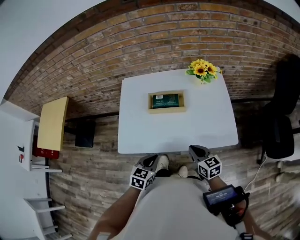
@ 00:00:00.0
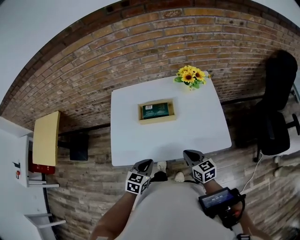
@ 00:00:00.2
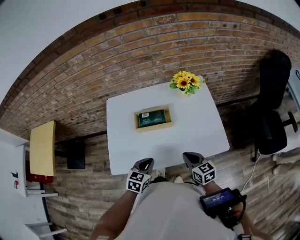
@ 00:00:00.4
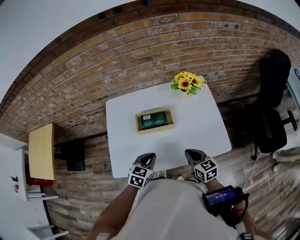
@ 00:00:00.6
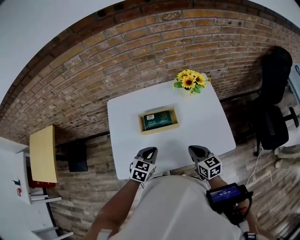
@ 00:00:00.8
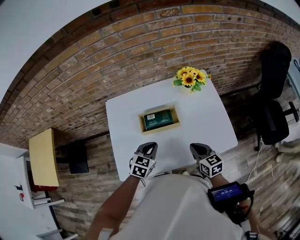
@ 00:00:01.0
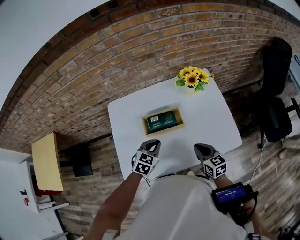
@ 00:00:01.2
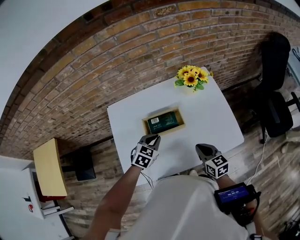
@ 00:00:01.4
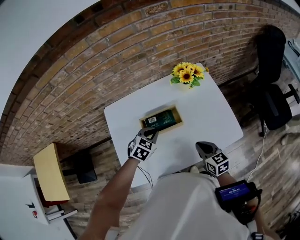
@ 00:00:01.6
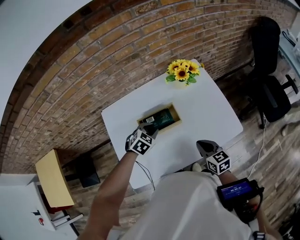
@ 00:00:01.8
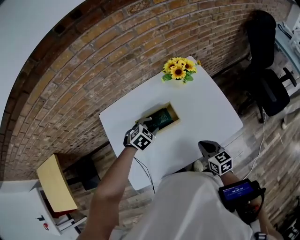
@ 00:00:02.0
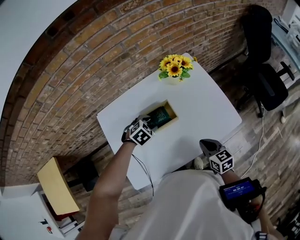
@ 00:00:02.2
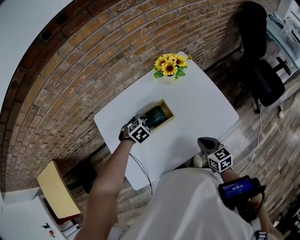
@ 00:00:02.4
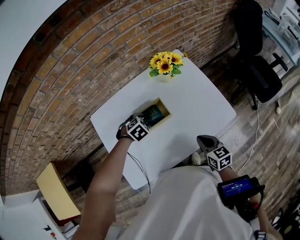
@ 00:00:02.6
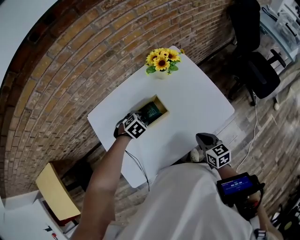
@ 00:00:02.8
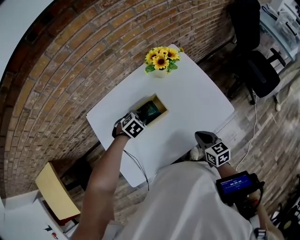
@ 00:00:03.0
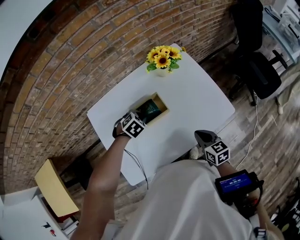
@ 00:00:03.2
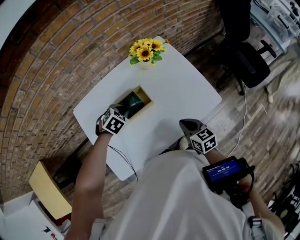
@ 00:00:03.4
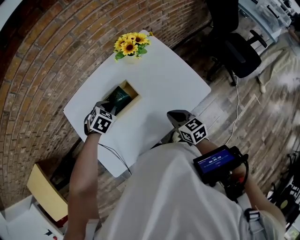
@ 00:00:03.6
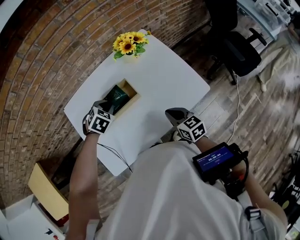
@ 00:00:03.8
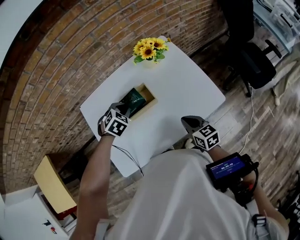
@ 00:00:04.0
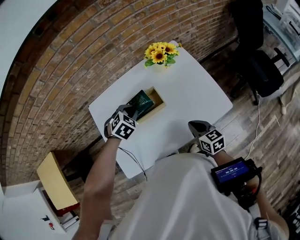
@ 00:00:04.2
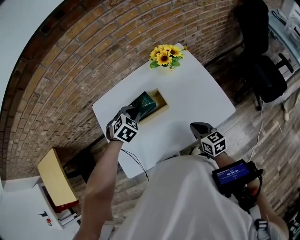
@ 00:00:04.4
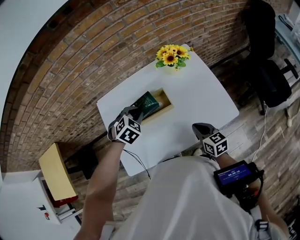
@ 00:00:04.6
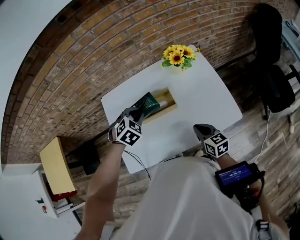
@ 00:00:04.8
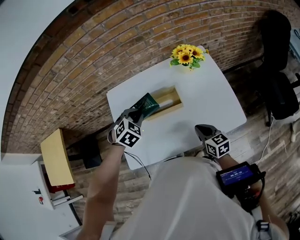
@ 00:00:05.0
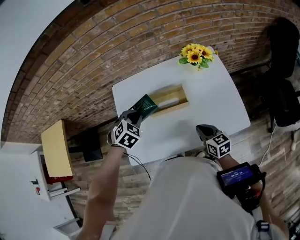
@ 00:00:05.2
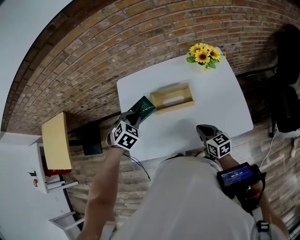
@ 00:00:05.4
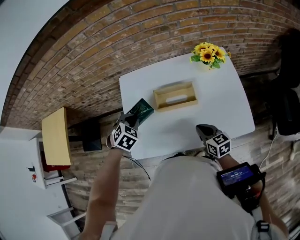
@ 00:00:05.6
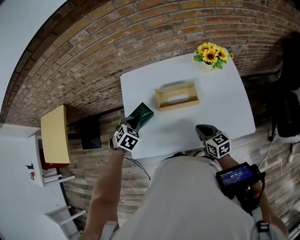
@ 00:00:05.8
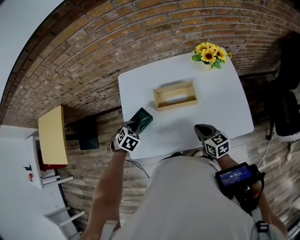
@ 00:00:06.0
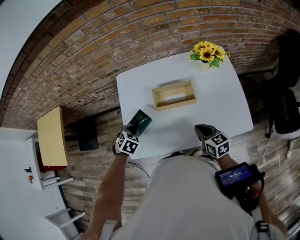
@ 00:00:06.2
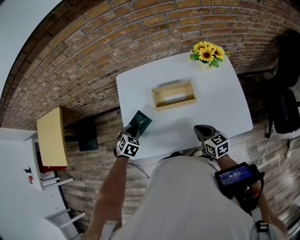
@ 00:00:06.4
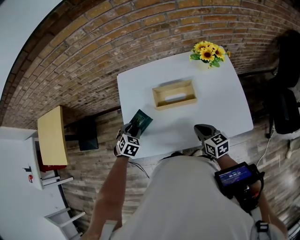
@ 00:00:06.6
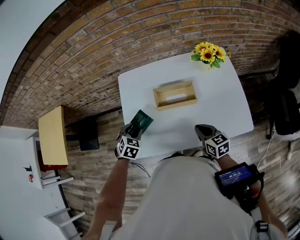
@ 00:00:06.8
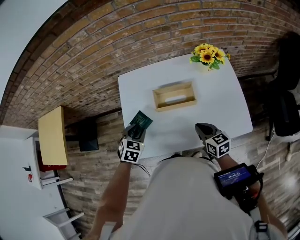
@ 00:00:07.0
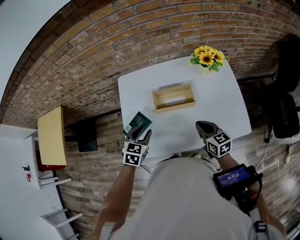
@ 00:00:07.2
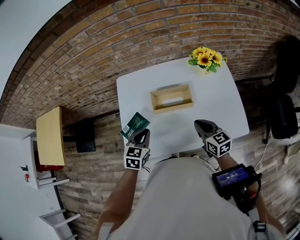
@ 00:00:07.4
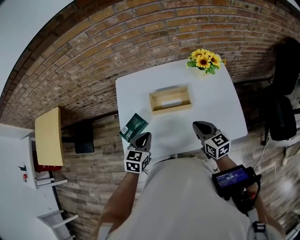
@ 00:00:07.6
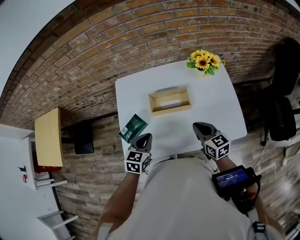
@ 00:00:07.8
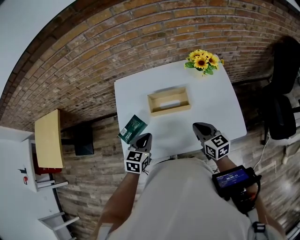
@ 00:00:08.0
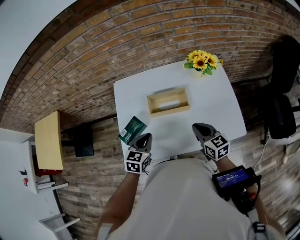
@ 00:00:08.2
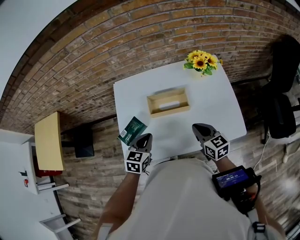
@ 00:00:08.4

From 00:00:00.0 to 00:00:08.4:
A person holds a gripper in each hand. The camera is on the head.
From 00:00:00.0 to 00:00:01.4: The right gripper shifts some 10 cm forward; the left gripper goes some 25 cm forward, and changes its angle by approximately 30 degrees.
From 00:00:01.4 to 00:00:02.8: The left gripper moves some 10 cm, changes its angle by about 40 degrees, and opens its fingers. The right gripper changes place by some 5 cm.
From 00:00:02.8 to 00:00:04.2: The left gripper travels upward by roughly 10 cm, and closes its fingers.
From 00:00:04.2 to 00:00:05.6: The left gripper ends up some 20 cm from where it was, and swivels some 30 degrees, while the right gripper ends up approximately 10 cm from where it was.
From 00:00:05.6 to 00:00:07.0: The left gripper opens its fingers.
From 00:00:07.0 to 00:00:08.4: The left gripper is displaced to the right by about 10 cm, swivels some 20 degrees, and closes up.

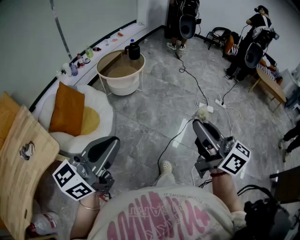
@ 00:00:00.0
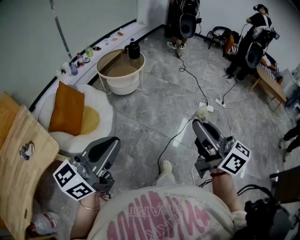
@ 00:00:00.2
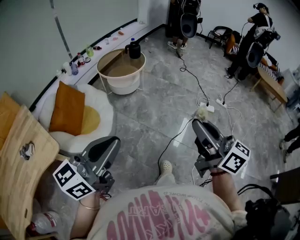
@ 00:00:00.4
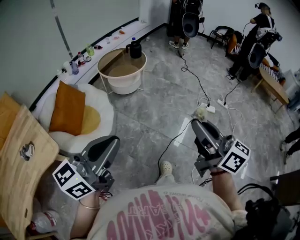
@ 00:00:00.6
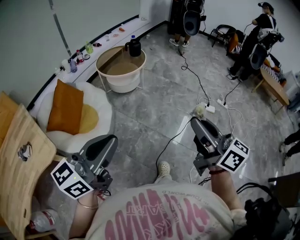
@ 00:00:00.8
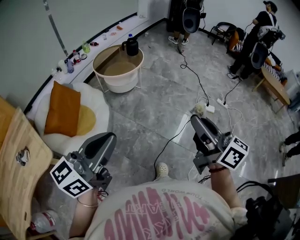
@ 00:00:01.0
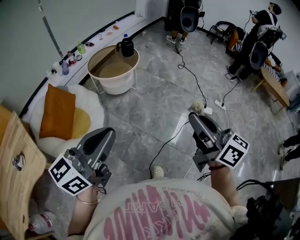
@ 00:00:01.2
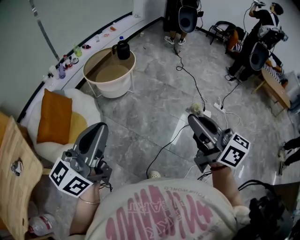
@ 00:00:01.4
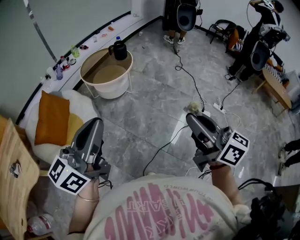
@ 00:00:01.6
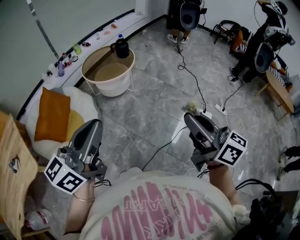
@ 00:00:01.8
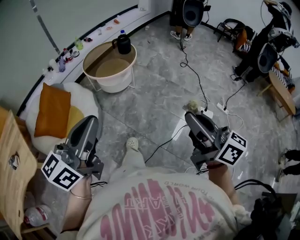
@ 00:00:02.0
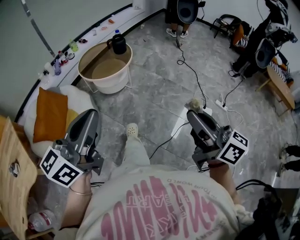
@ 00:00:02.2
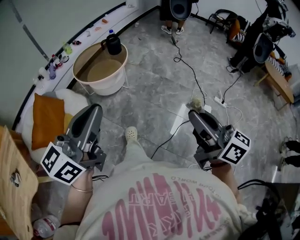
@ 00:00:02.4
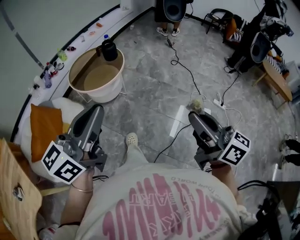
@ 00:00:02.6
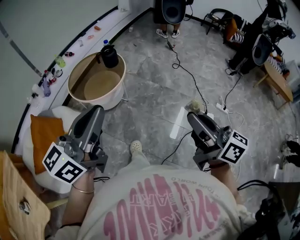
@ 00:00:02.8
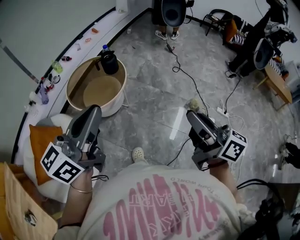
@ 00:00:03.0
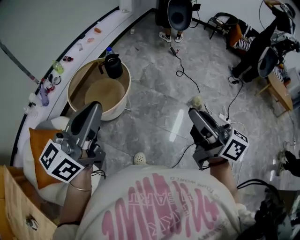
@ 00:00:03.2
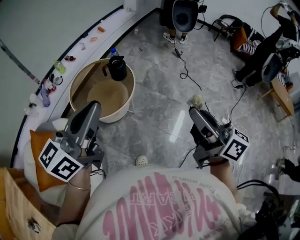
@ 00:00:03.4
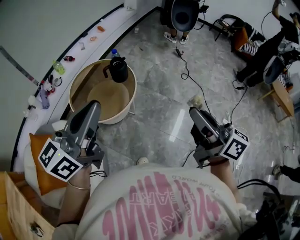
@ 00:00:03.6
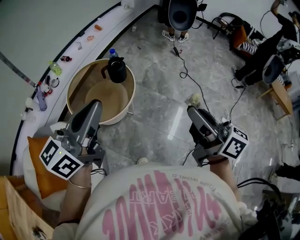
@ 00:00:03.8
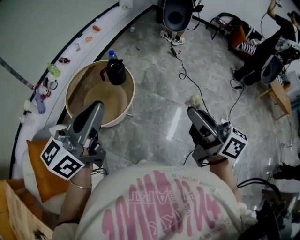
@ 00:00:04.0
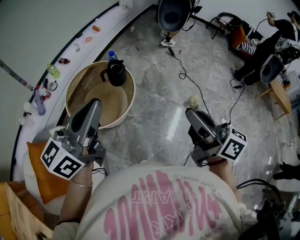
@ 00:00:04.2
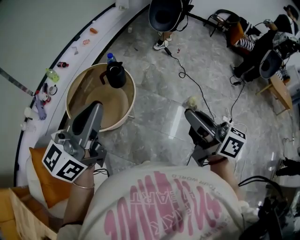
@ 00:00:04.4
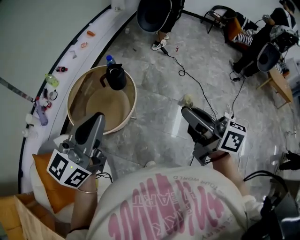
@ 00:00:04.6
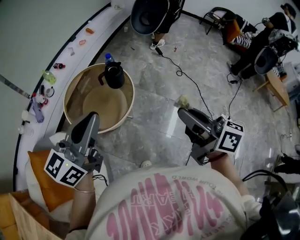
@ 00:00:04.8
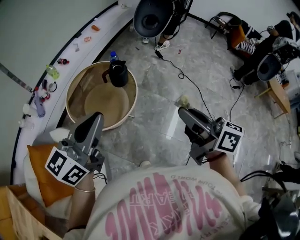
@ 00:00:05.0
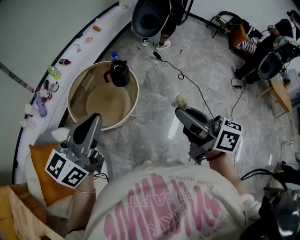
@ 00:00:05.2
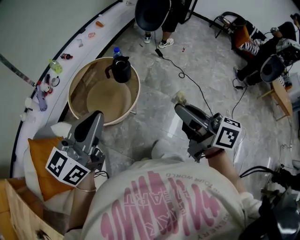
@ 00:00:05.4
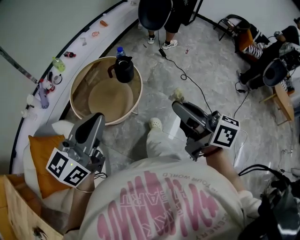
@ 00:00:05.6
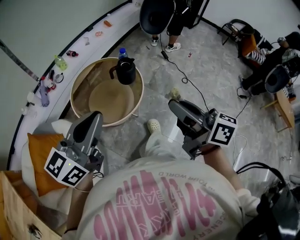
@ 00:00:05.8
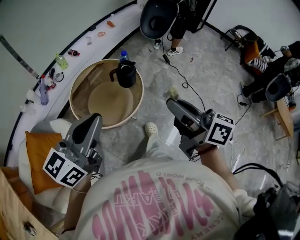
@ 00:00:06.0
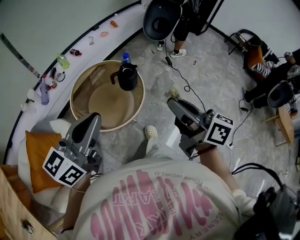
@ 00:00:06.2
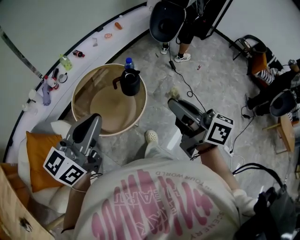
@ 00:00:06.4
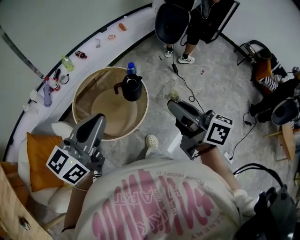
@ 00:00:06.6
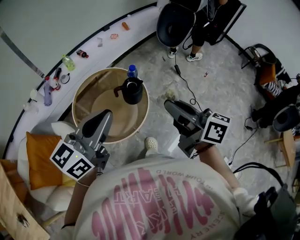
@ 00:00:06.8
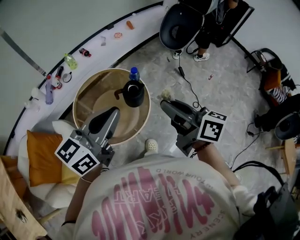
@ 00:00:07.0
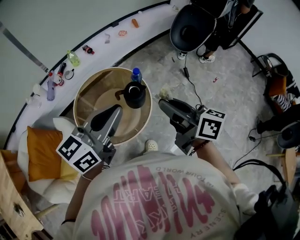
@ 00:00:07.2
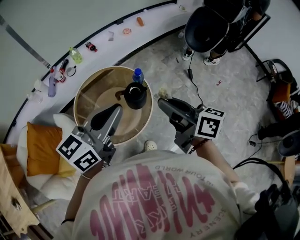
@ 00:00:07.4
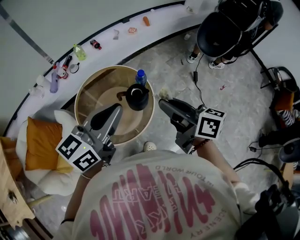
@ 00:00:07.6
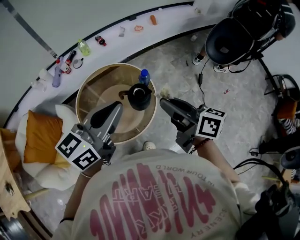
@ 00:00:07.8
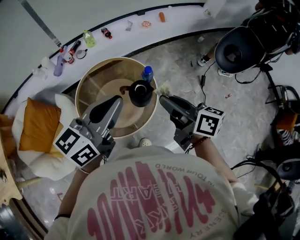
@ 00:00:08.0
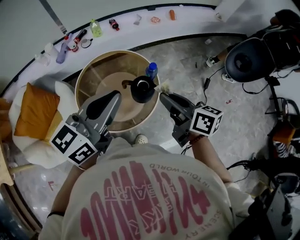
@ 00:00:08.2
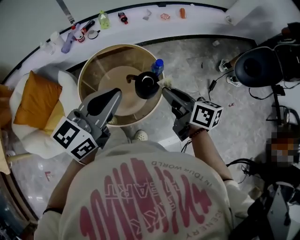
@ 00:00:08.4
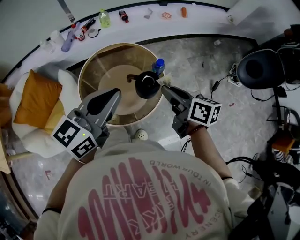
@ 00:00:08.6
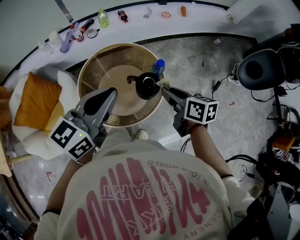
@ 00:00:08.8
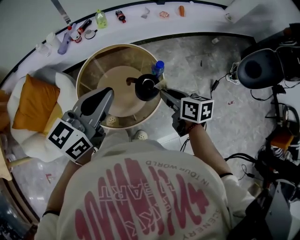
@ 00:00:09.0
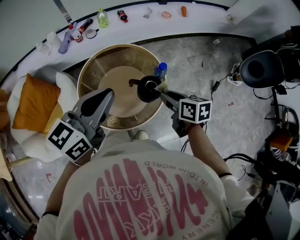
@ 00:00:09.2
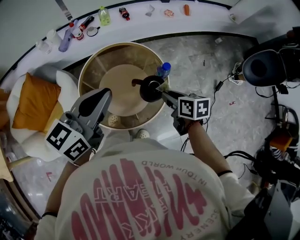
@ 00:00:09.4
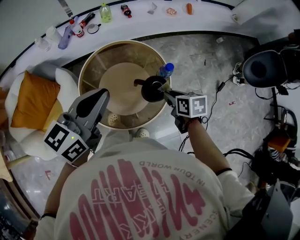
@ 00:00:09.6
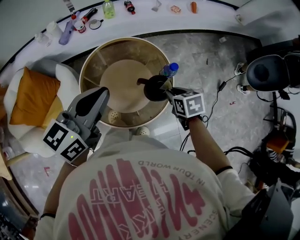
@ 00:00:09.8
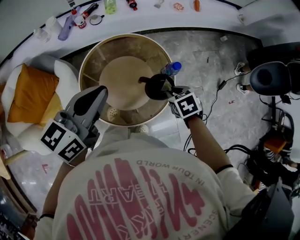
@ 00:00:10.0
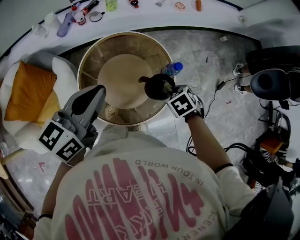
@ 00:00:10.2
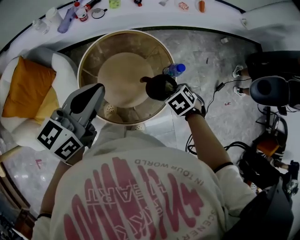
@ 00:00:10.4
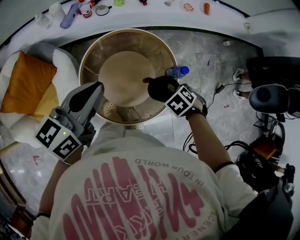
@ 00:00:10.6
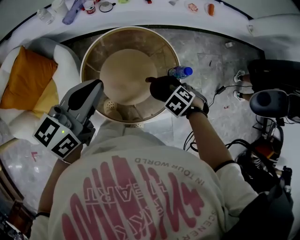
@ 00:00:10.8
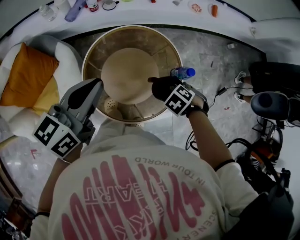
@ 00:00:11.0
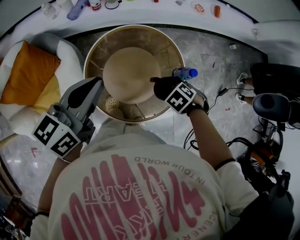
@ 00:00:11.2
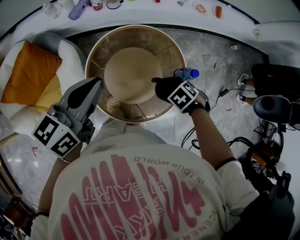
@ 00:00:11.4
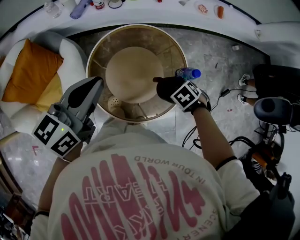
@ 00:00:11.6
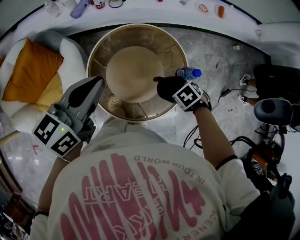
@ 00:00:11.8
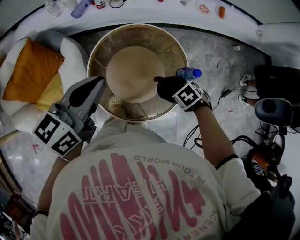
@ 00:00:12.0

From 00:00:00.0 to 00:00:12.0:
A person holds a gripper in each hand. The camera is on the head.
From 00:00:00.0 to 00:00:01.6: The two grippers go approximately 30 cm forward and to the right.
From 00:00:01.6 to 00:00:03.0: Both grippers travel together forward, approximately 30 cm.
From 00:00:03.0 to 00:00:04.4: The left gripper shifts some 20 cm forward. The right gripper goes approximately 25 cm forward and to the left.
From 00:00:04.4 to 00:00:06.0: The left gripper travels downward by approximately 5 cm. Meanwhile the right gripper goes about 10 cm forward and to the left.
From 00:00:06.0 to 00:00:07.6: The right gripper travels forward by roughly 30 cm, and changes its angle by roughly 30 degrees; the left gripper moves forward and to the right, roughly 30 cm.
From 00:00:07.6 to 00:00:09.0: The right gripper moves downward and forward, about 15 cm, and rotates approximately 30 degrees, while the left gripper goes approximately 10 cm to the left and forward.
From 00:00:09.0 to 00:00:10.4: The right gripper goes approximately 10 cm downward, and tilts its fingers about 50 degrees downward, while the left gripper ends up approximately 15 cm from where it was.
From 00:00:10.4 to 00:00:12.0: The left gripper changes place by roughly 5 cm. The right gripper changes place by some 5 cm.

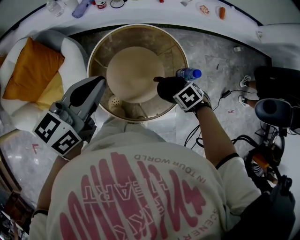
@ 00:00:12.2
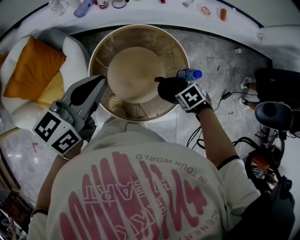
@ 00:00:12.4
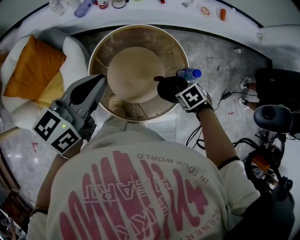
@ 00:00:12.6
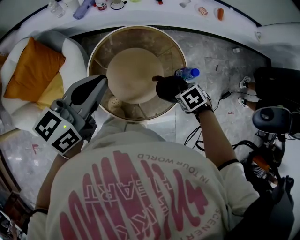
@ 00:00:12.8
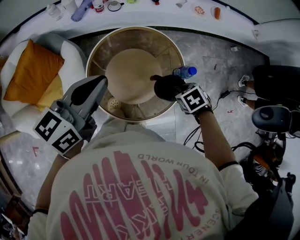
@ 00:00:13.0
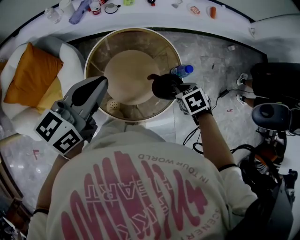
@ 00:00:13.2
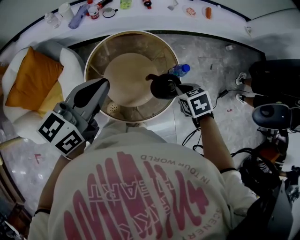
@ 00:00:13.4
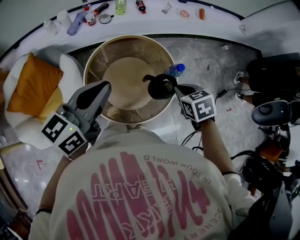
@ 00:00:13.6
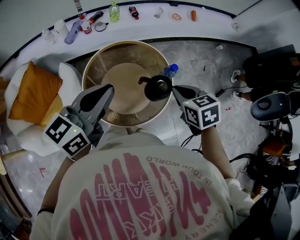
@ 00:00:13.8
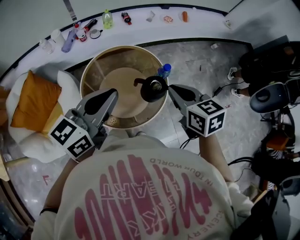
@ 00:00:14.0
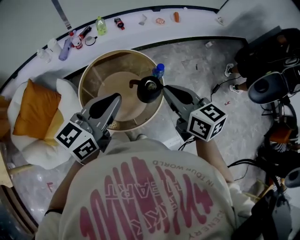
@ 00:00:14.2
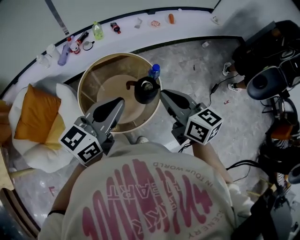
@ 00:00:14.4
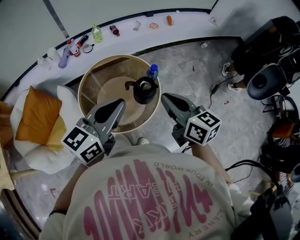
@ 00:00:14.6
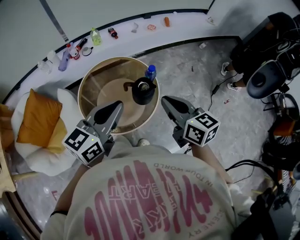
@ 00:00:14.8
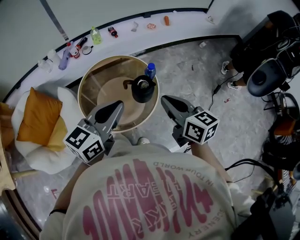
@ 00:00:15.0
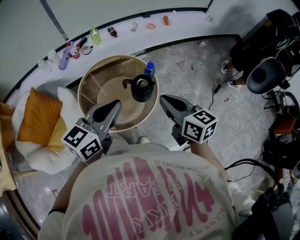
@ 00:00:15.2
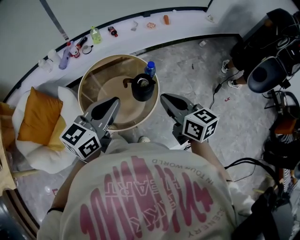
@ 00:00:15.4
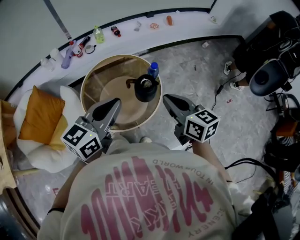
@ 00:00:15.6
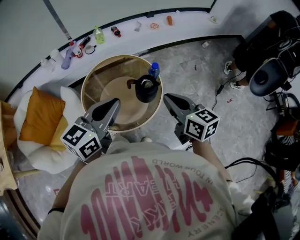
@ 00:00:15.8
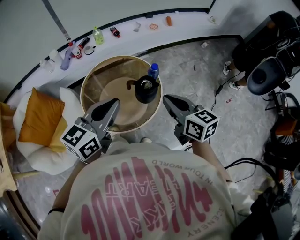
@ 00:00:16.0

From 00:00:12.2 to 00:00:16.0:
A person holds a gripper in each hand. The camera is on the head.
From 00:00:12.2 to 00:00:13.4: The left gripper shifts by approximately 5 cm, while the right gripper travels upward by some 10 cm, and swivels approximately 30 degrees.
From 00:00:13.4 to 00:00:14.8: The right gripper travels upward and backward by about 25 cm, and angles its fingers upward, by about 50 degrees. Meanwhile the left gripper shifts approximately 20 cm to the right and backward.
From 00:00:14.8 to 00:00:16.0: The grippers move only a little.
